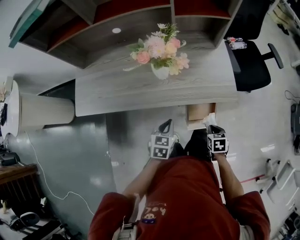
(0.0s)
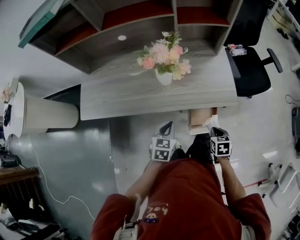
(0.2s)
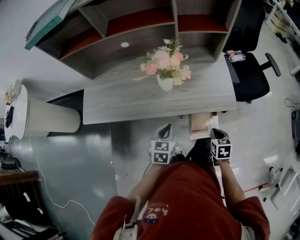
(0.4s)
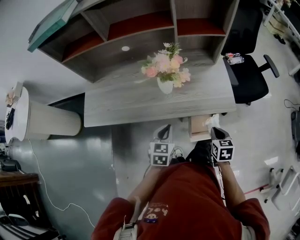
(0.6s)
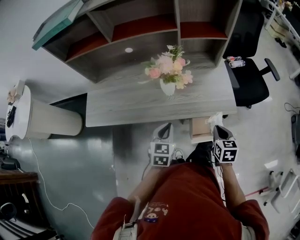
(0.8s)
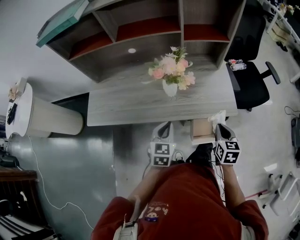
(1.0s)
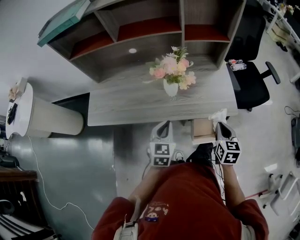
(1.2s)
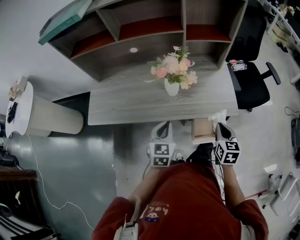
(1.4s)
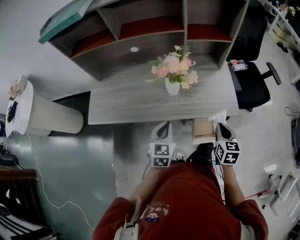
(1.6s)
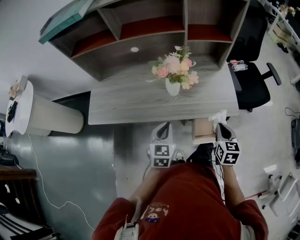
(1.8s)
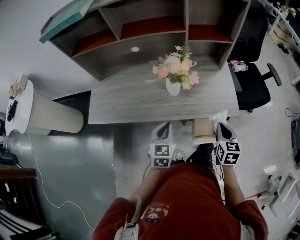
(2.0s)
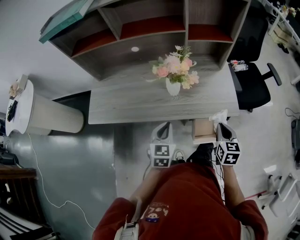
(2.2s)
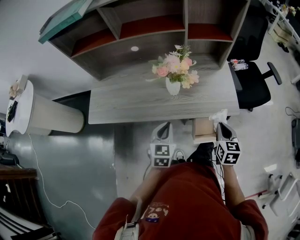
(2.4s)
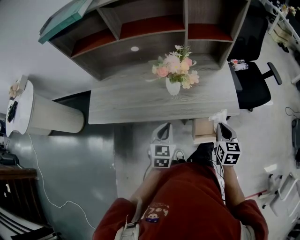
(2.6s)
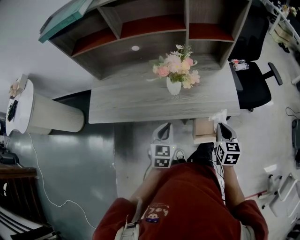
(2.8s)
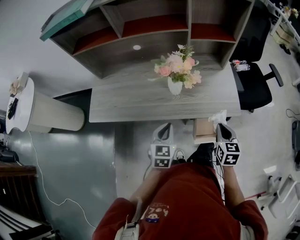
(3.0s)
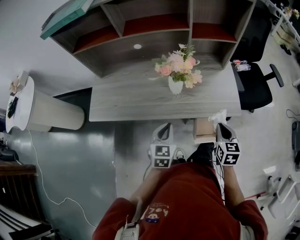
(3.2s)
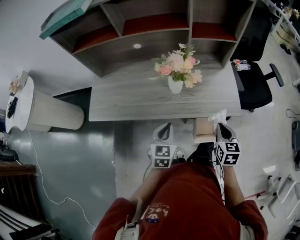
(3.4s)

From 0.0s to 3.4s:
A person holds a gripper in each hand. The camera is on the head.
From 0.0s to 1.6s: The right gripper heads upward, covering about 20 cm, and changes its angle by about 30 degrees, while the left gripper moves upward and to the left, approximately 15 cm.
From 1.6s to 3.4s: The grippers stay close to where they were, moving slightly.

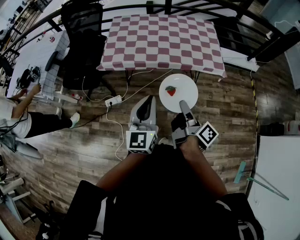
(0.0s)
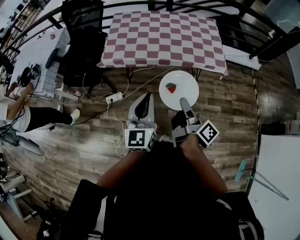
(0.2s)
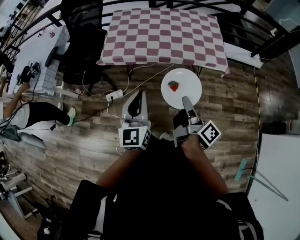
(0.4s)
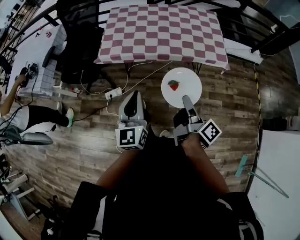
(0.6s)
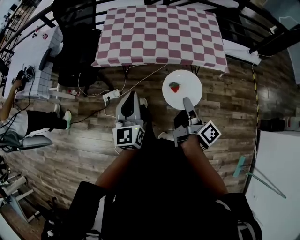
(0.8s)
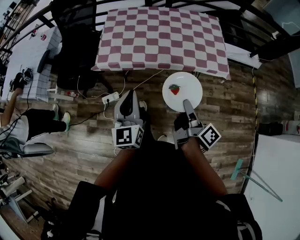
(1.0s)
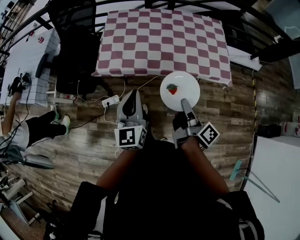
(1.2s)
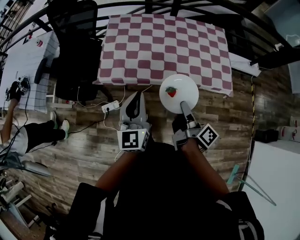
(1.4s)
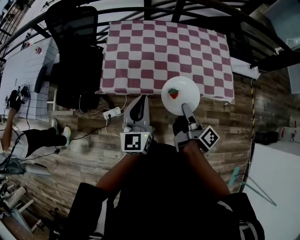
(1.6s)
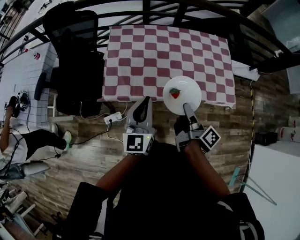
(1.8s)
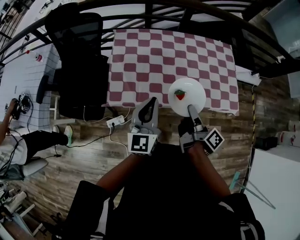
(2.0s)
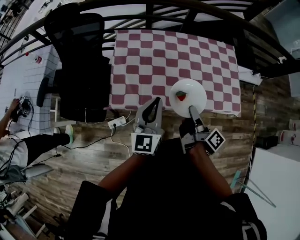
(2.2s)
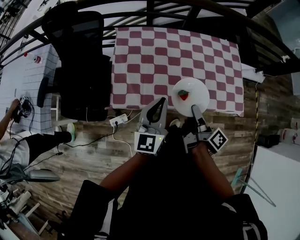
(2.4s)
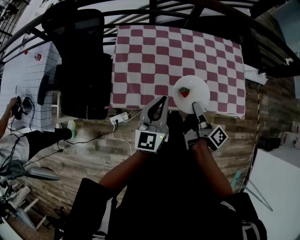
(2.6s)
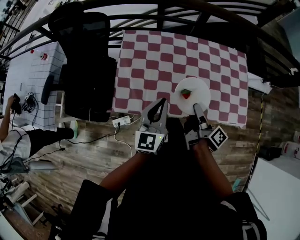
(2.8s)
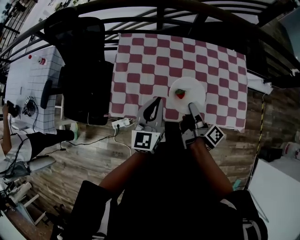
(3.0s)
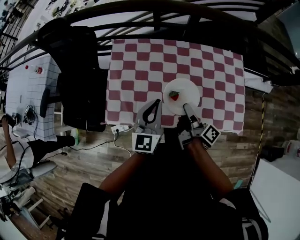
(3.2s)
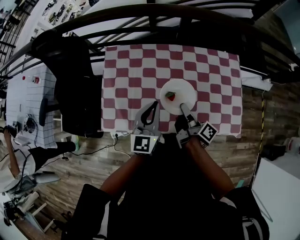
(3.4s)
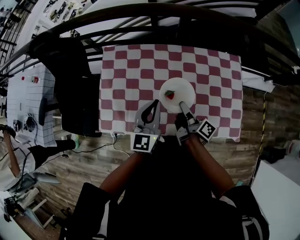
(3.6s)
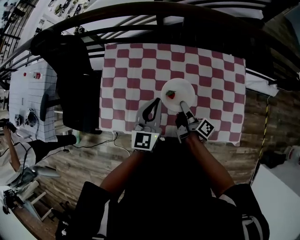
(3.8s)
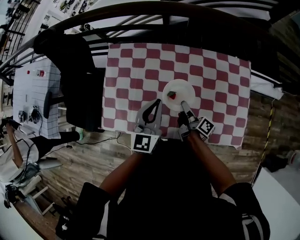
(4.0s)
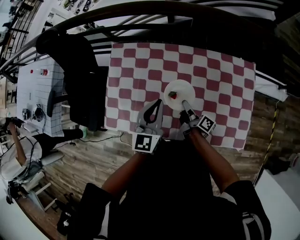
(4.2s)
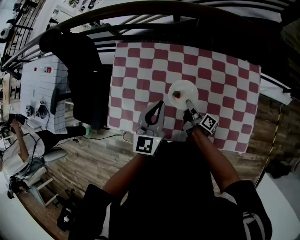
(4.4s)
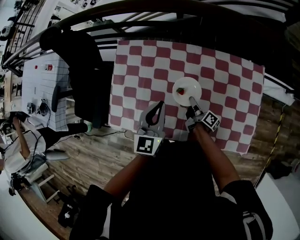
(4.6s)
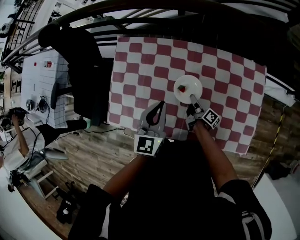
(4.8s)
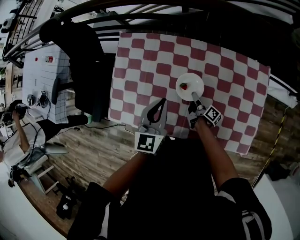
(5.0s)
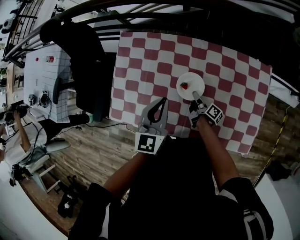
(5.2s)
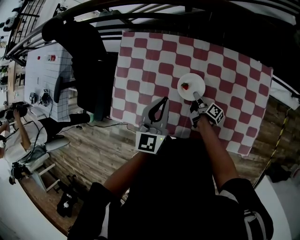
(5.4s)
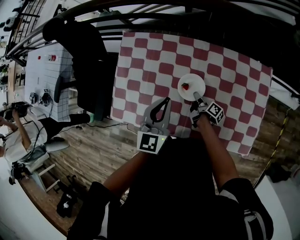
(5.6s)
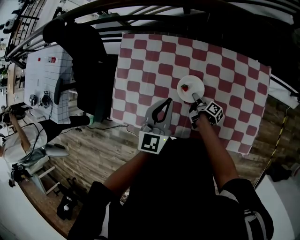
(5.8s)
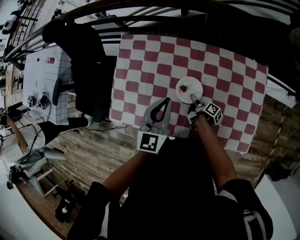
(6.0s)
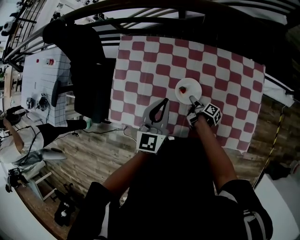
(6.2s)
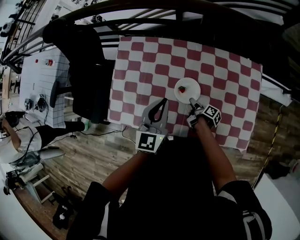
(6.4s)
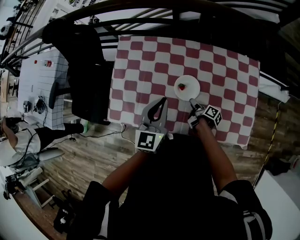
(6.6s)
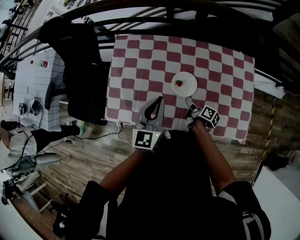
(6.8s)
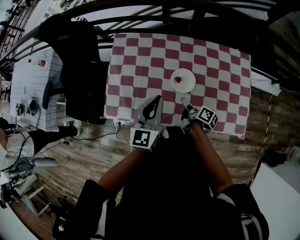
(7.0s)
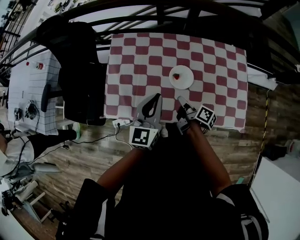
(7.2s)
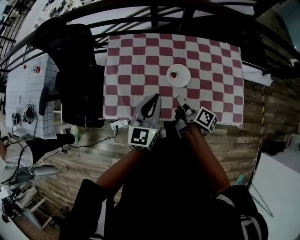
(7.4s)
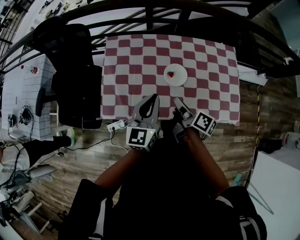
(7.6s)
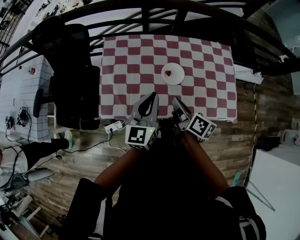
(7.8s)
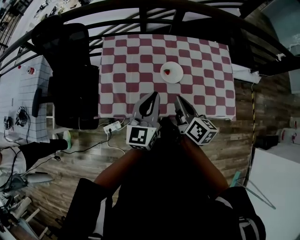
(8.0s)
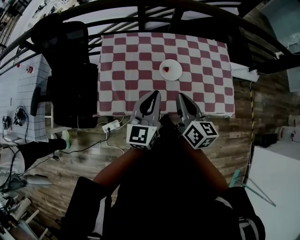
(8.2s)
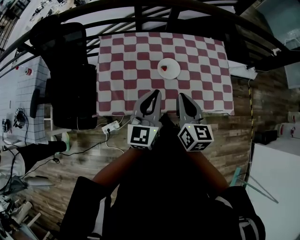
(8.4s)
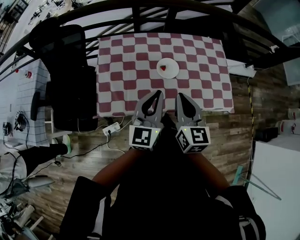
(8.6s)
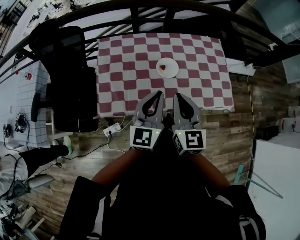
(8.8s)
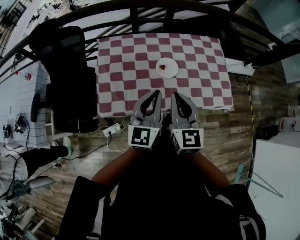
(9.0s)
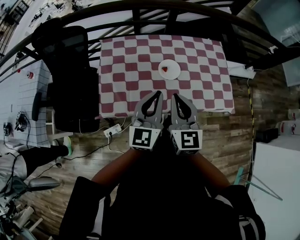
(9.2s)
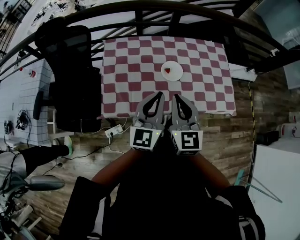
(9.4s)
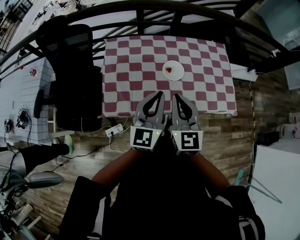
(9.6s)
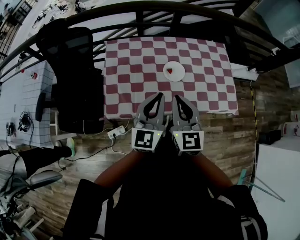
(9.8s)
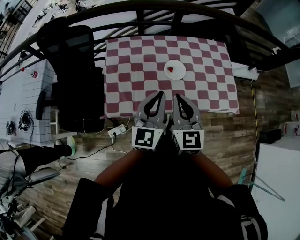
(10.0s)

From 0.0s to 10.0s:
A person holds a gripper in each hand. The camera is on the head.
From 0.0s to 1.4s: The left gripper moves approximately 25 cm.
From 1.4s to 2.8s: The left gripper moves about 20 cm.
From 2.8s to 4.2s: The left gripper changes place by some 20 cm.
From 5.8s to 7.2s: The left gripper shifts by roughly 10 cm.
From 7.2s to 8.6s: The left gripper shifts by approximately 10 cm.

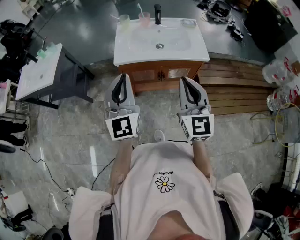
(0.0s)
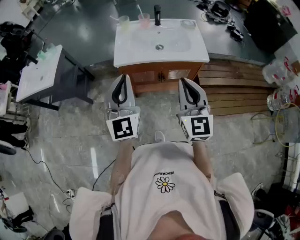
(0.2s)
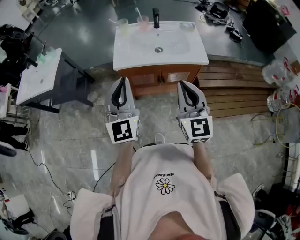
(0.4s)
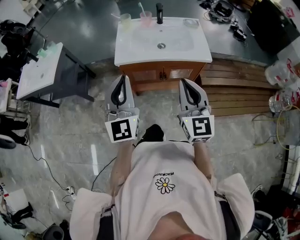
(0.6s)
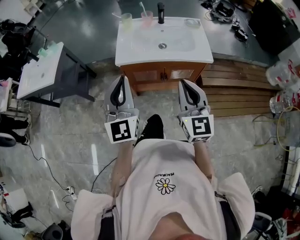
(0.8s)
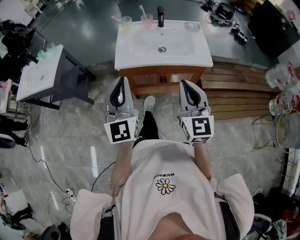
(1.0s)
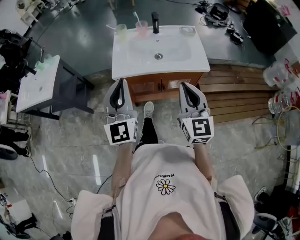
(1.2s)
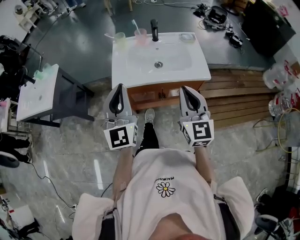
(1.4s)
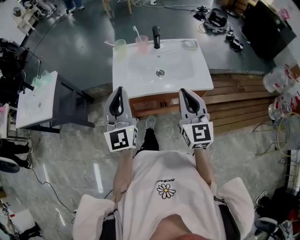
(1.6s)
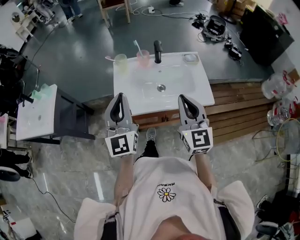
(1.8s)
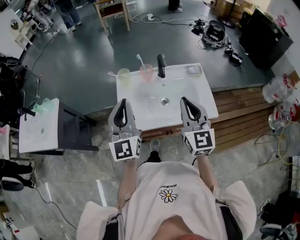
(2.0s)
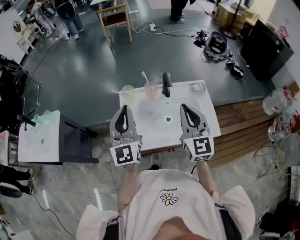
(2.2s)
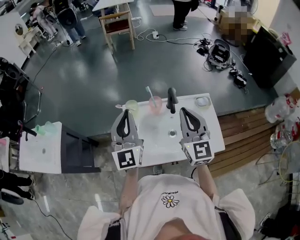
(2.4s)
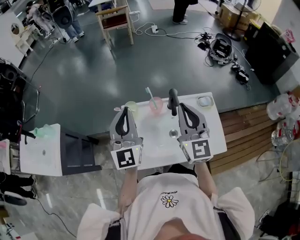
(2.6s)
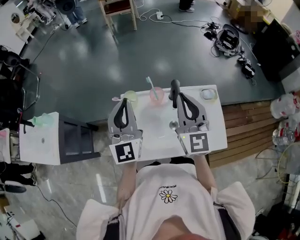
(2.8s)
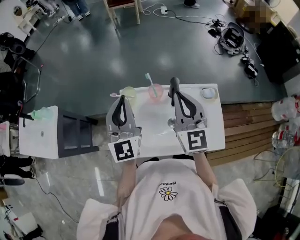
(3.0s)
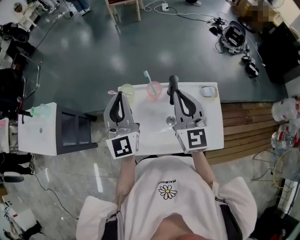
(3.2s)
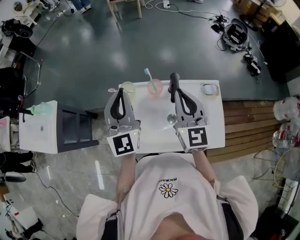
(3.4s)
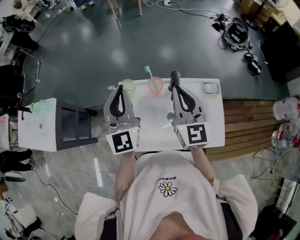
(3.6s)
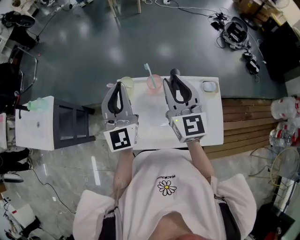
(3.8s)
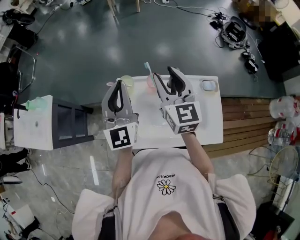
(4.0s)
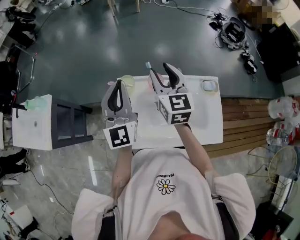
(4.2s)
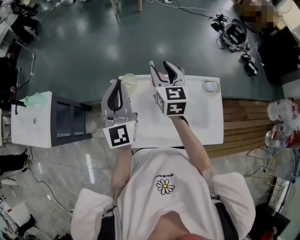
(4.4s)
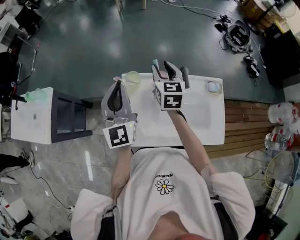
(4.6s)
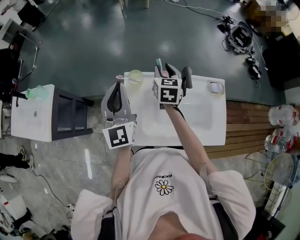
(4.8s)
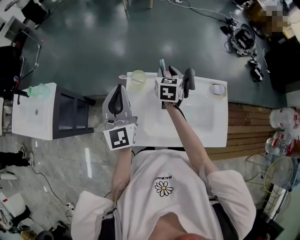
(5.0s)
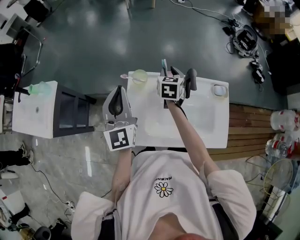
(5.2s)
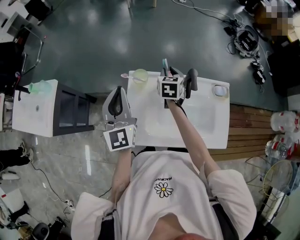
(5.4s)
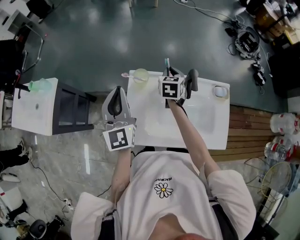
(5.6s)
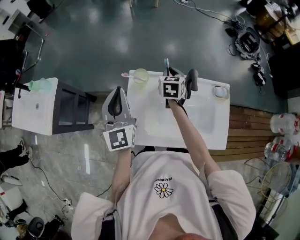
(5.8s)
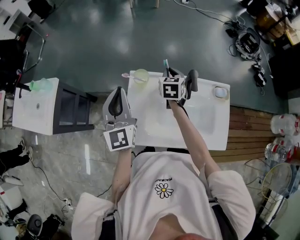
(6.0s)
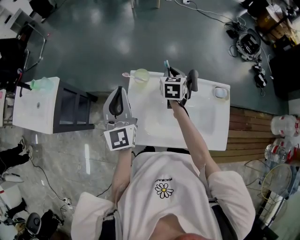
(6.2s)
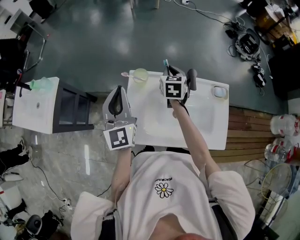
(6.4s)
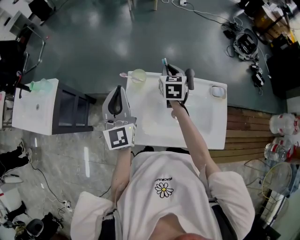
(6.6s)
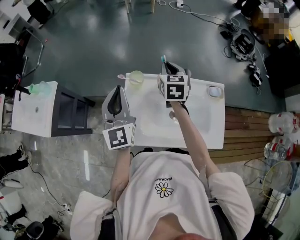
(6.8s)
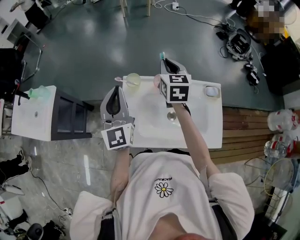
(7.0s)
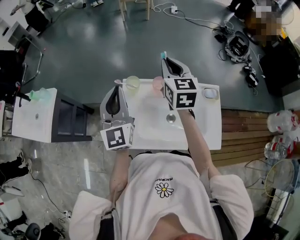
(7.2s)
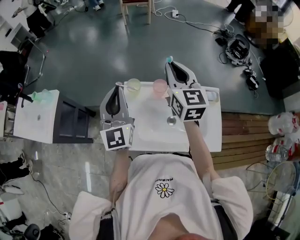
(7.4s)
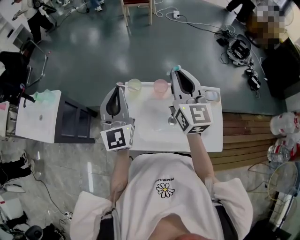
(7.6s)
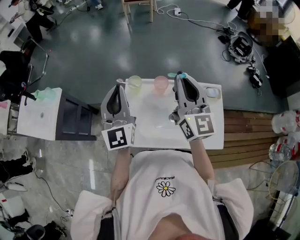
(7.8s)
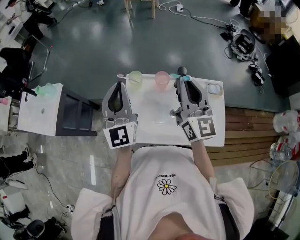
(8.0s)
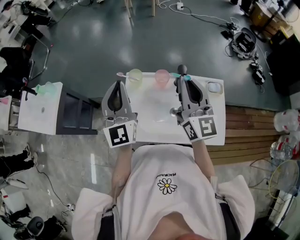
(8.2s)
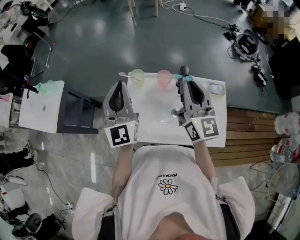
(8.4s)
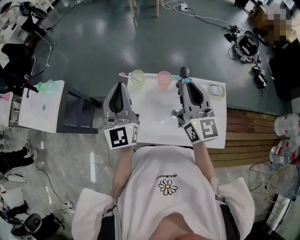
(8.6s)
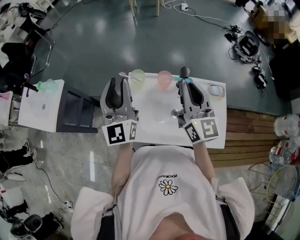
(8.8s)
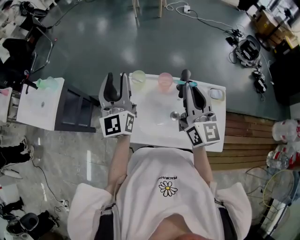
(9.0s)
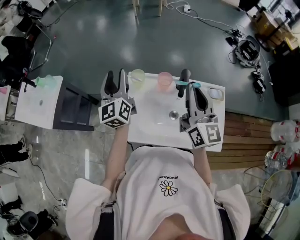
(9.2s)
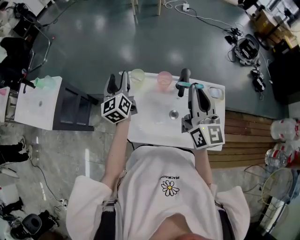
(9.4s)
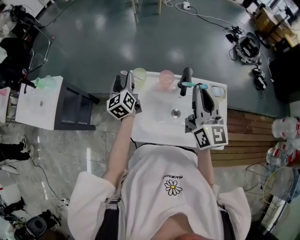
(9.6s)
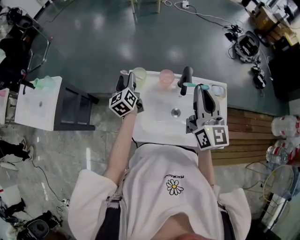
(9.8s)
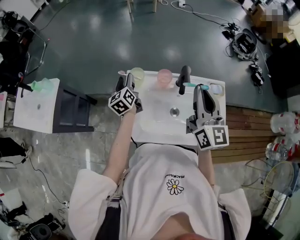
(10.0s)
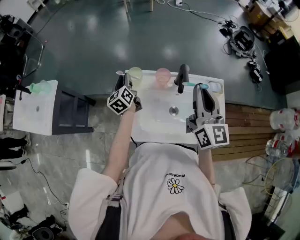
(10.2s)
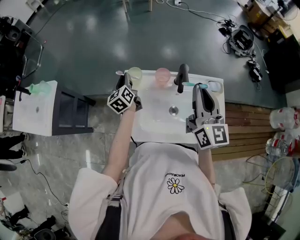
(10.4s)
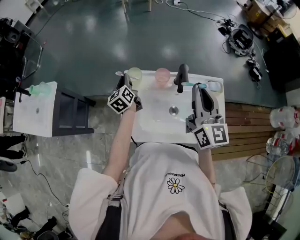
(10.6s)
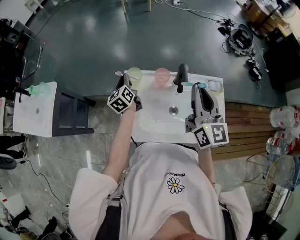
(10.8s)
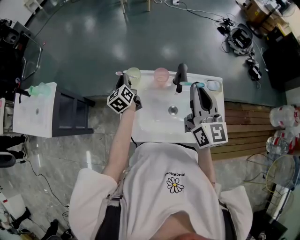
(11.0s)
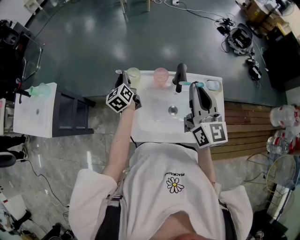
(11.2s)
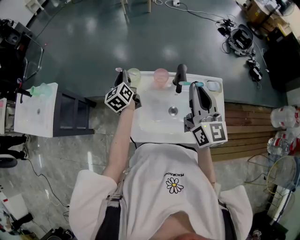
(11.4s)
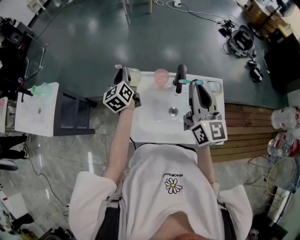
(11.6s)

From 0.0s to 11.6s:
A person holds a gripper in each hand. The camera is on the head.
From 0.0s to 1.4s: Both grippers move forward, about 10 cm.
From 1.4s to 2.8s: Both grippers move forward, about 35 cm.
From 2.8s to 4.4s: The right gripper goes roughly 15 cm forward, downward and to the left, turns by approximately 20 degrees, and opens up.
From 4.4s to 5.8s: The right gripper travels downward by approximately 15 cm, rotates some 20 degrees, and closes up. The left gripper travels to the left by about 5 cm.
From 5.8s to 7.2s: The right gripper travels upward by some 20 cm, and turns by approximately 30 degrees. The left gripper ends up some 5 cm from where it was.
From 7.2s to 8.8s: The right gripper goes approximately 10 cm backward, and rotates about 30 degrees. The left gripper opens its fingers.
From 8.8s to 10.2s: The left gripper travels downward and forward by about 25 cm, points its fingers roughly 30 degrees further downward, and opens, then closes once more.
From 10.2s to 11.6s: The left gripper goes some 10 cm upward, and closes its fingers.
